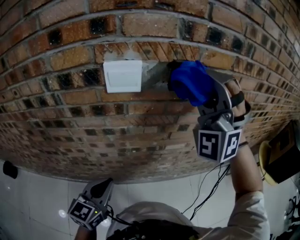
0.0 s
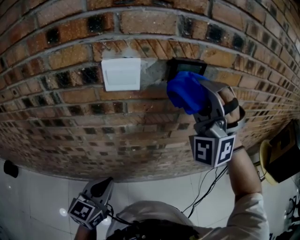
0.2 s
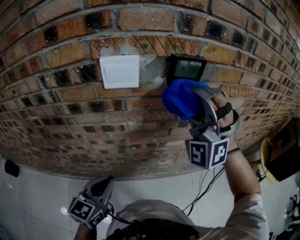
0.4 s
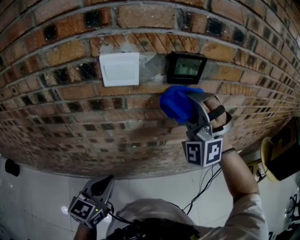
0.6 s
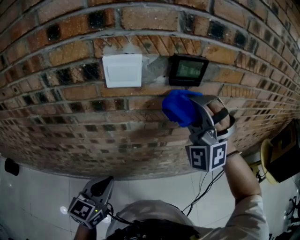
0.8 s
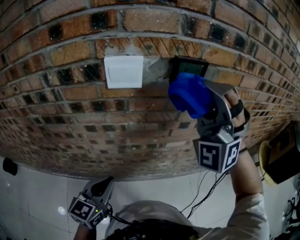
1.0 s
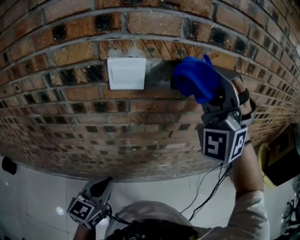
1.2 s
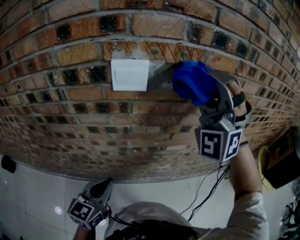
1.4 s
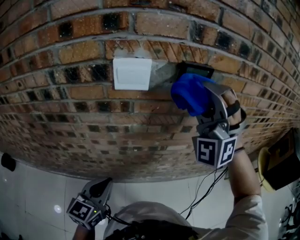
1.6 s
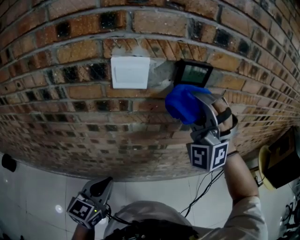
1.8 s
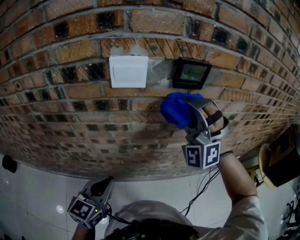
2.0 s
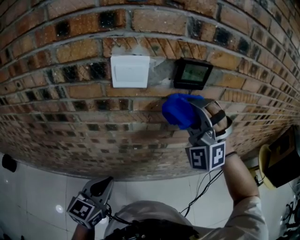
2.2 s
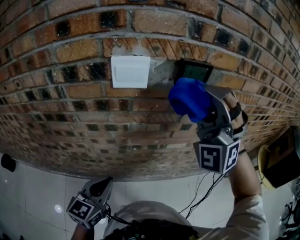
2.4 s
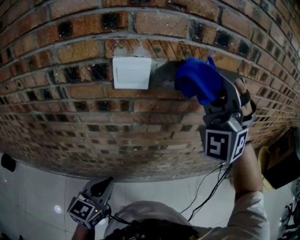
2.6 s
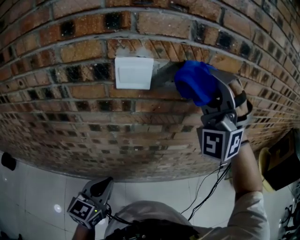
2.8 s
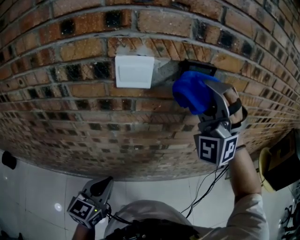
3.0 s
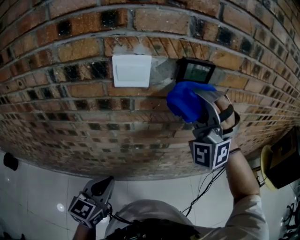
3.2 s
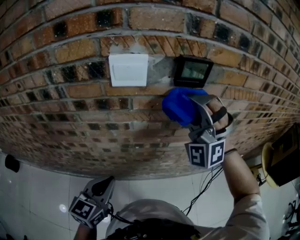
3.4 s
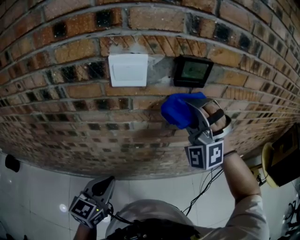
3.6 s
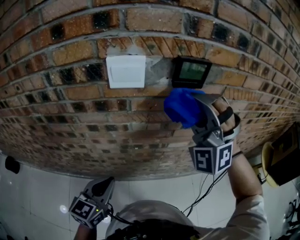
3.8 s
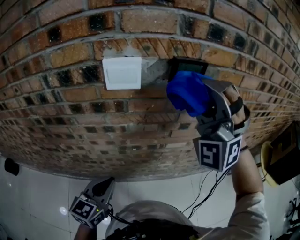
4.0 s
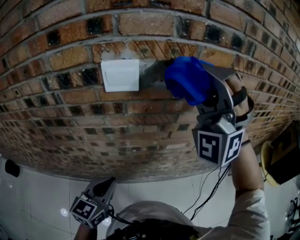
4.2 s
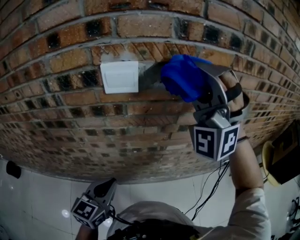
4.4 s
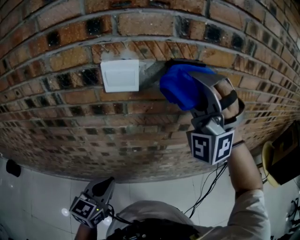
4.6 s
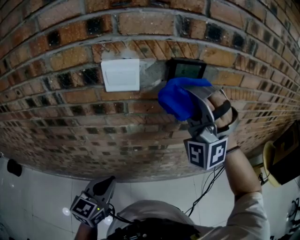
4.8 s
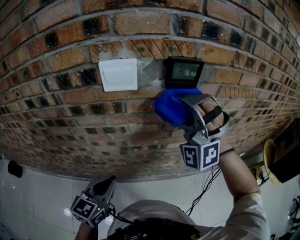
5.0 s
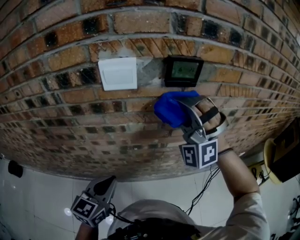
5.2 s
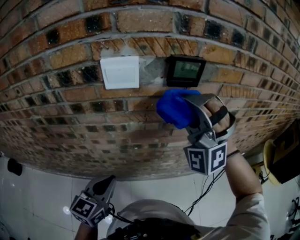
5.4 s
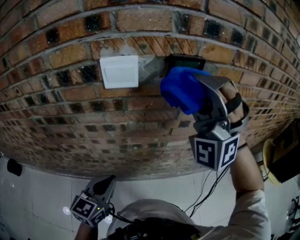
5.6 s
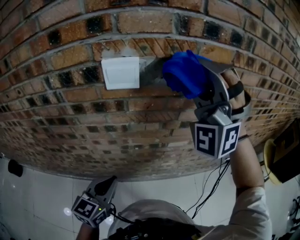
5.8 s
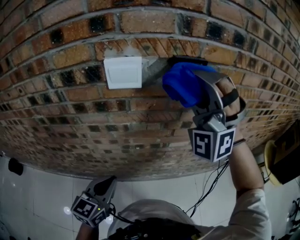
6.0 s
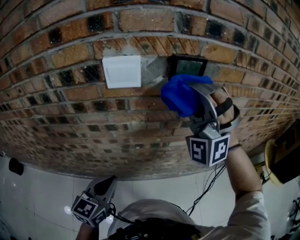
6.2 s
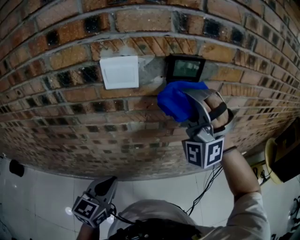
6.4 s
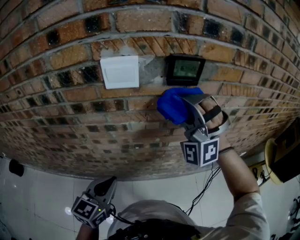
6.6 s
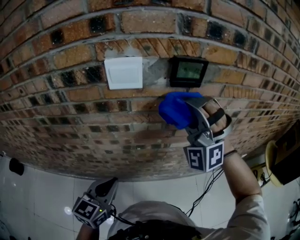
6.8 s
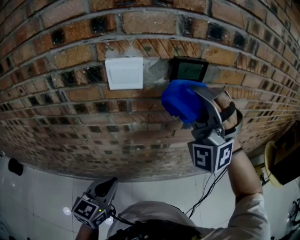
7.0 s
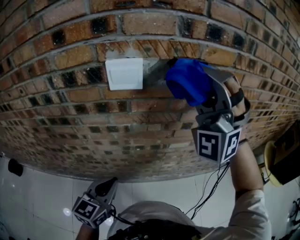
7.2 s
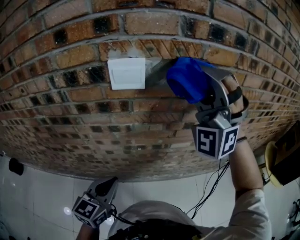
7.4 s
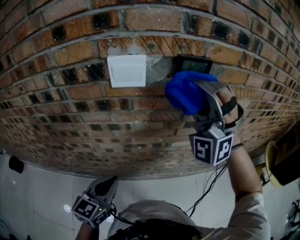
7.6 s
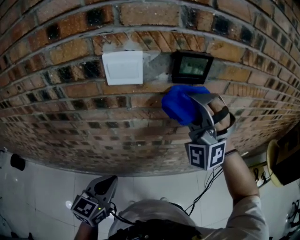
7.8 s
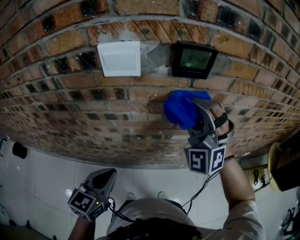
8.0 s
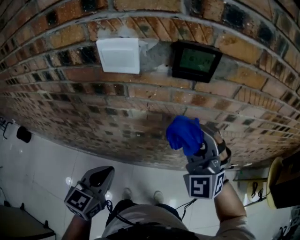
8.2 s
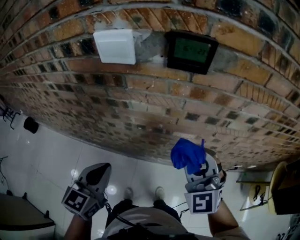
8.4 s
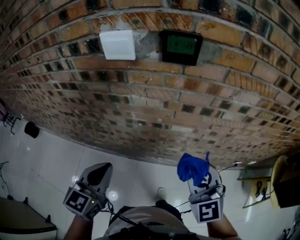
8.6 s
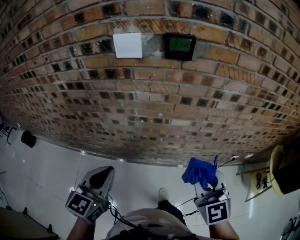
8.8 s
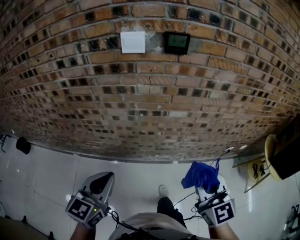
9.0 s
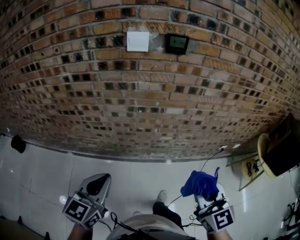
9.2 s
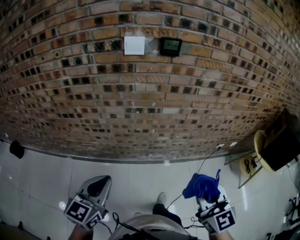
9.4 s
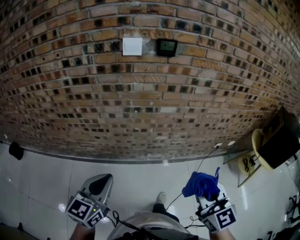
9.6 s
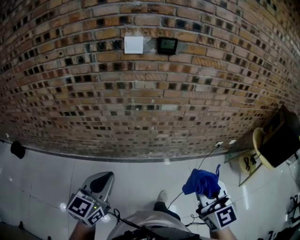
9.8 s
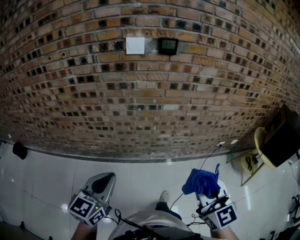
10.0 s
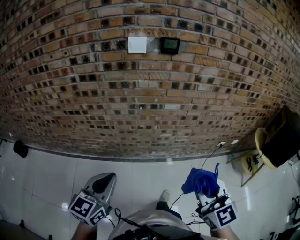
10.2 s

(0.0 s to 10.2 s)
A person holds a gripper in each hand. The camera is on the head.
7.2 s - 8.8 s: The left gripper changes place by approximately 15 cm.
8.8 s - 10.2 s: The left gripper moves roughly 20 cm.

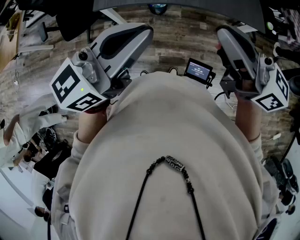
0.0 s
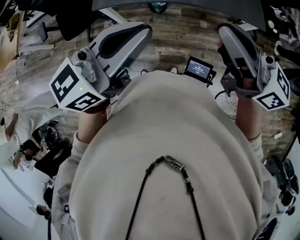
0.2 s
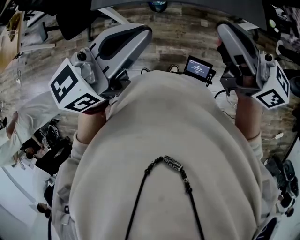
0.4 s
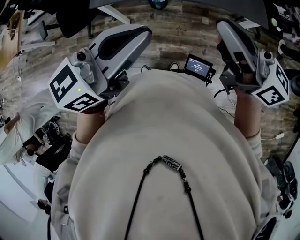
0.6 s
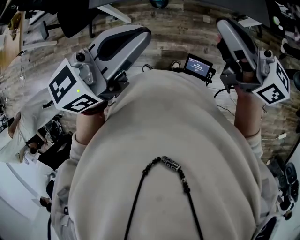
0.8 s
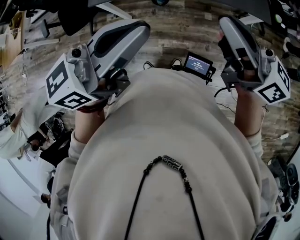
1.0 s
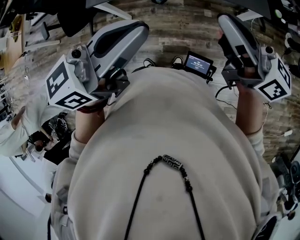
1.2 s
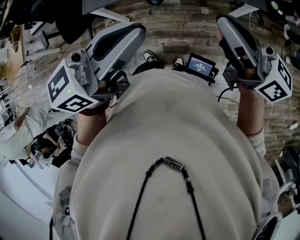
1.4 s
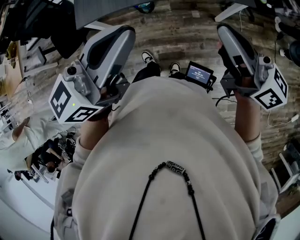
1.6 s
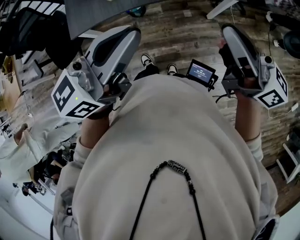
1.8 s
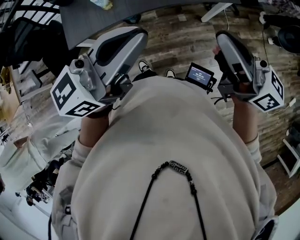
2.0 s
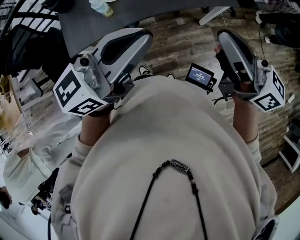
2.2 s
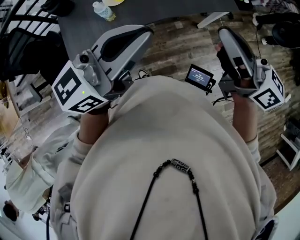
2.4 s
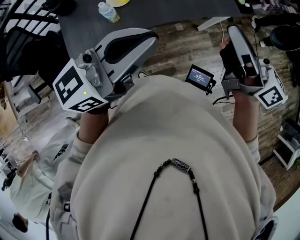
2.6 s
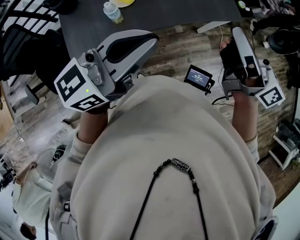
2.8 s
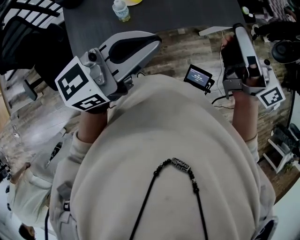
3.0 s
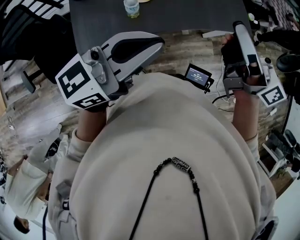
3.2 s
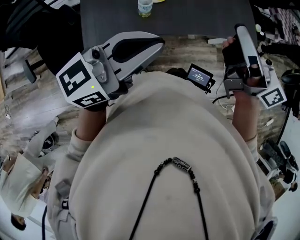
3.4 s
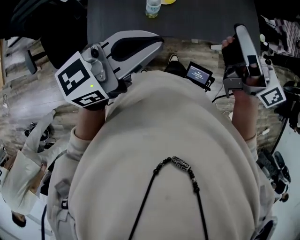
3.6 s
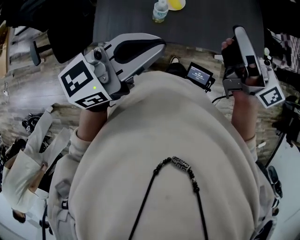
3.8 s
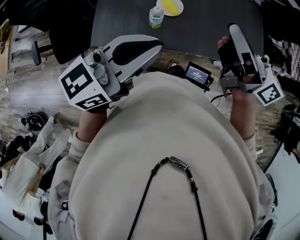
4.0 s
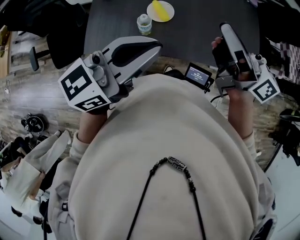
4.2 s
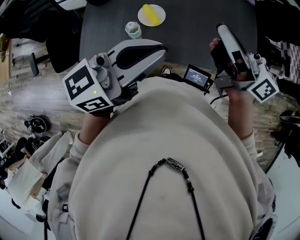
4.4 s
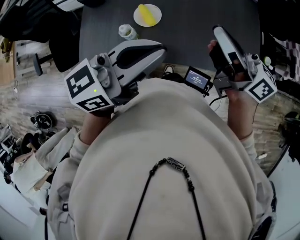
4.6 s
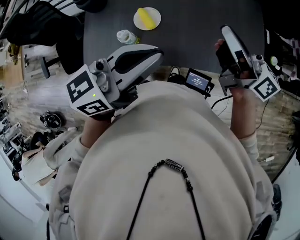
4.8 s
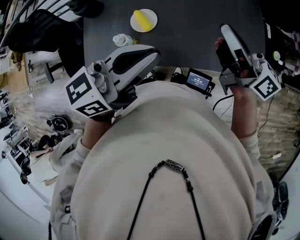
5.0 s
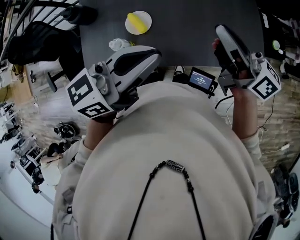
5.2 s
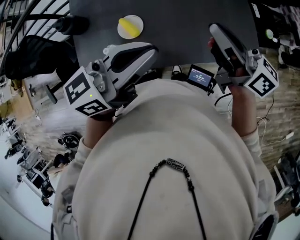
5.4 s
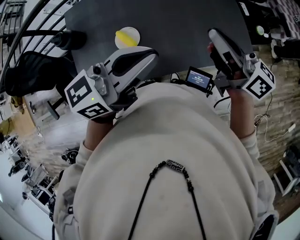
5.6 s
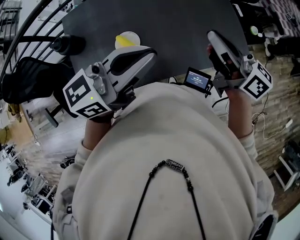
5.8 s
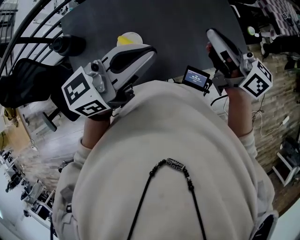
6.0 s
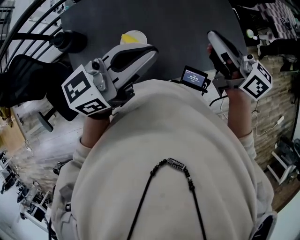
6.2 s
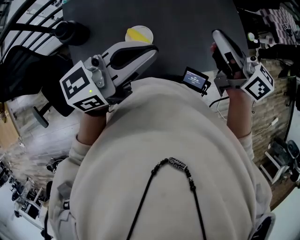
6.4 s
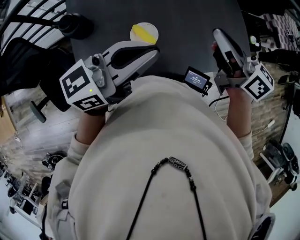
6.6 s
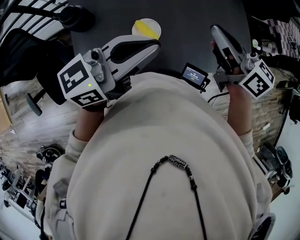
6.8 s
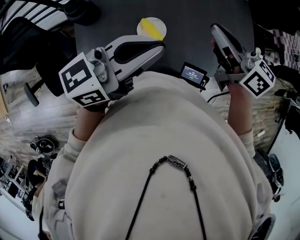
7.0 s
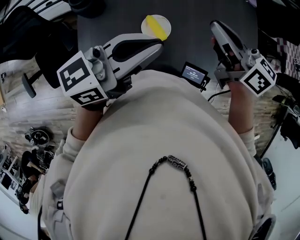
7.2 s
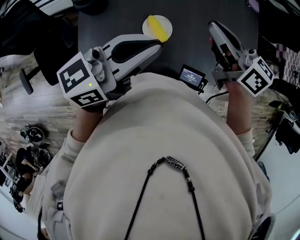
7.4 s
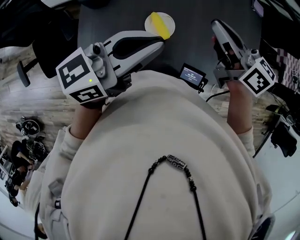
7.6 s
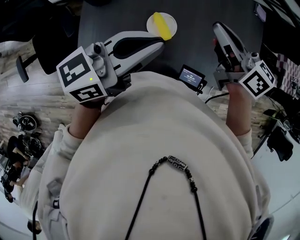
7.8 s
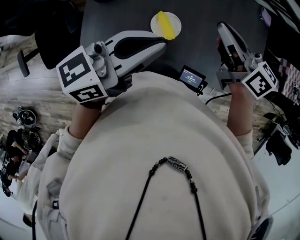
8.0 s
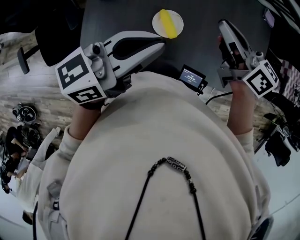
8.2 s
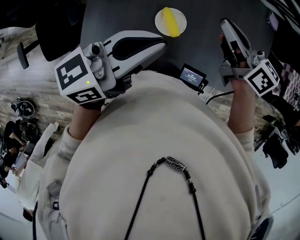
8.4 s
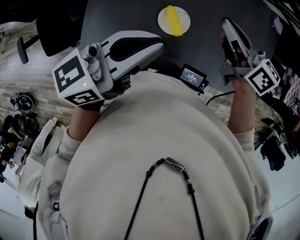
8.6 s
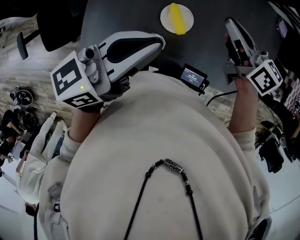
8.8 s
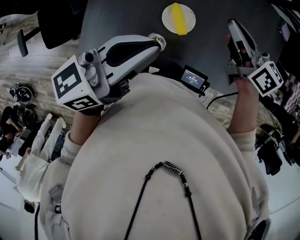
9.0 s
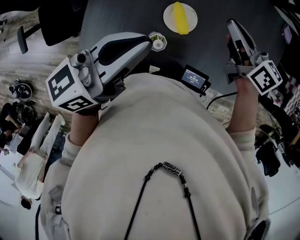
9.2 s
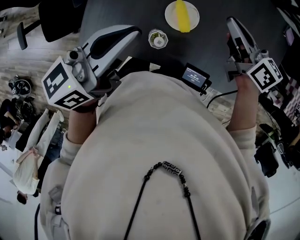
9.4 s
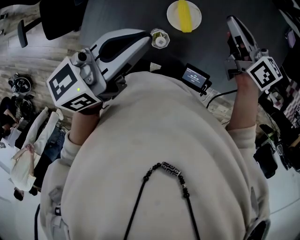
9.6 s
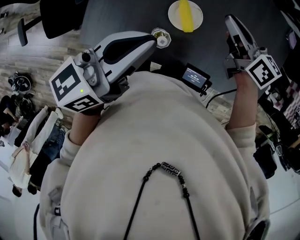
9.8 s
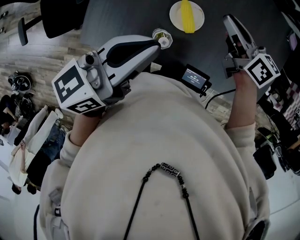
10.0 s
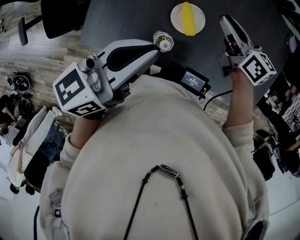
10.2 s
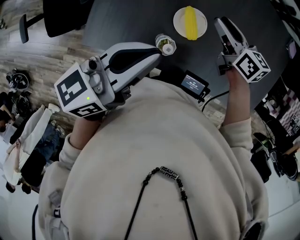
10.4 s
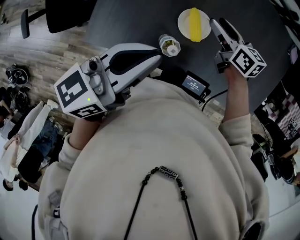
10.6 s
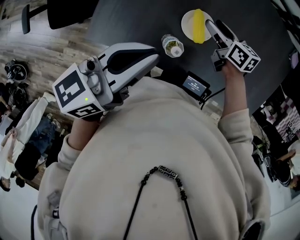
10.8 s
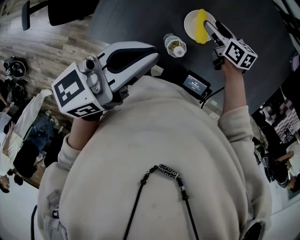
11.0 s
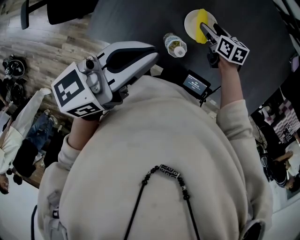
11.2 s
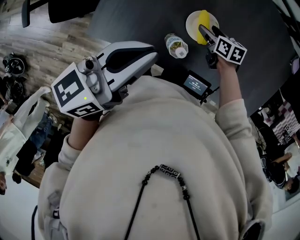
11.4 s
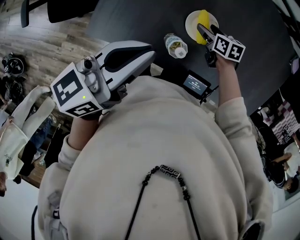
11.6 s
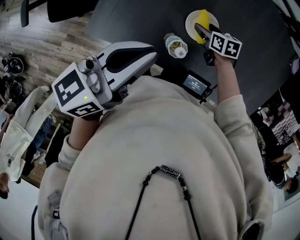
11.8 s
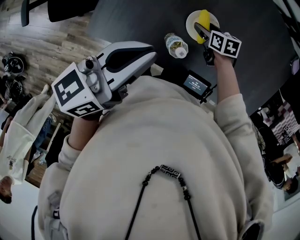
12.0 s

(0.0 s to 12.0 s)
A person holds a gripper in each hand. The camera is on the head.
0.0 s - 1.6 s: The right gripper heads downward and to the right, covering about 15 cm; the left gripper heads downward, covering roughly 10 cm.
1.6 s - 3.0 s: The left gripper heads downward, covering some 5 cm, and turns by about 20 degrees.
3.0 s - 4.4 s: The left gripper moves backward and upward, about 10 cm, while the right gripper is displaced backward by roughly 5 cm.
4.4 s - 6.0 s: The right gripper shifts about 5 cm to the right, and swivels approximately 20 degrees. Meanwhile the left gripper moves forward, roughly 5 cm.
6.0 s - 7.6 s: The grippers stay close to where they were, moving slightly.
7.6 s - 9.0 s: The right gripper heads downward, covering about 10 cm.
9.0 s - 10.4 s: The right gripper heads downward, covering some 10 cm, and opens up.
10.4 s - 12.0 s: The right gripper moves downward, approximately 20 cm, angles its fingers downward, by roughly 30 degrees, and opens its fingers.

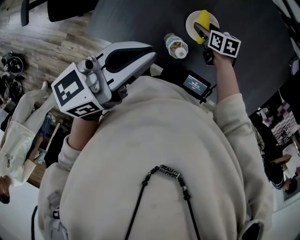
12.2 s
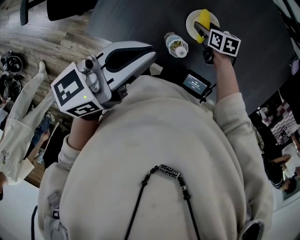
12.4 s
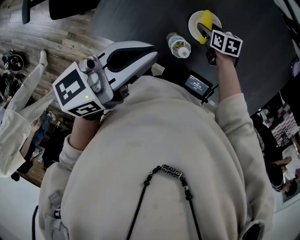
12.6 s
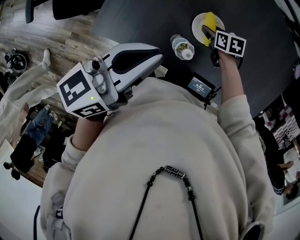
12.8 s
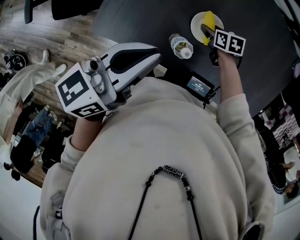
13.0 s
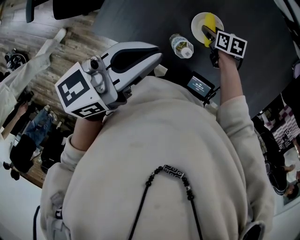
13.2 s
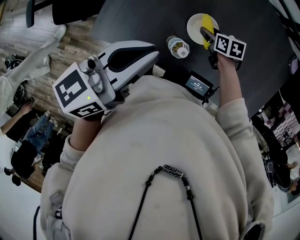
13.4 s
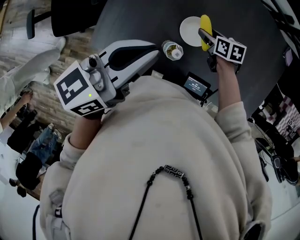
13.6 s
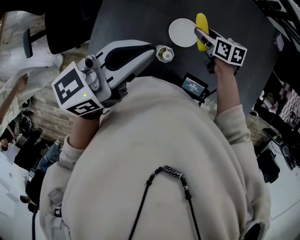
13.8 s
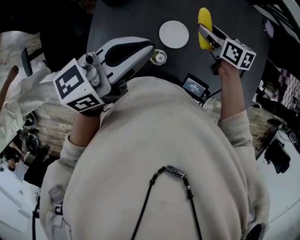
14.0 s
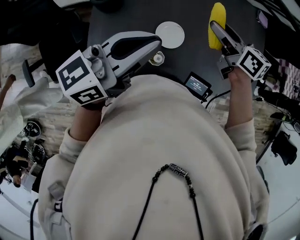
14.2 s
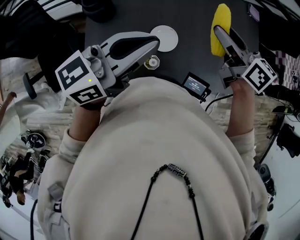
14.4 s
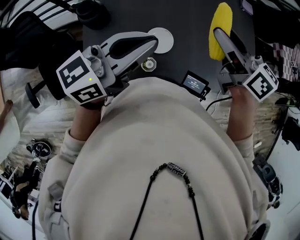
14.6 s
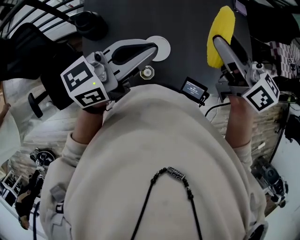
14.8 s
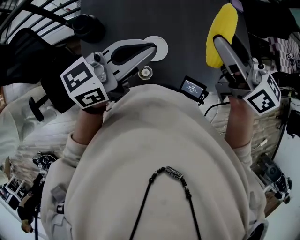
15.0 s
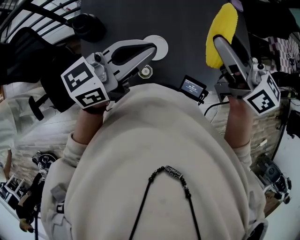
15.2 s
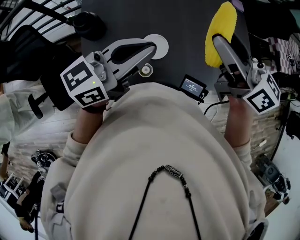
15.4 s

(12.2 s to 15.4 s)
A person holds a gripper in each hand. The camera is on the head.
12.2 s - 13.8 s: The right gripper heads upward, covering approximately 15 cm, while the left gripper is displaced upward by some 5 cm.
13.8 s - 15.4 s: The right gripper is displaced upward by some 35 cm, and tips its fingers upward by approximately 50 degrees, while the left gripper is displaced to the right by roughly 5 cm, and rotates roughly 20 degrees.
